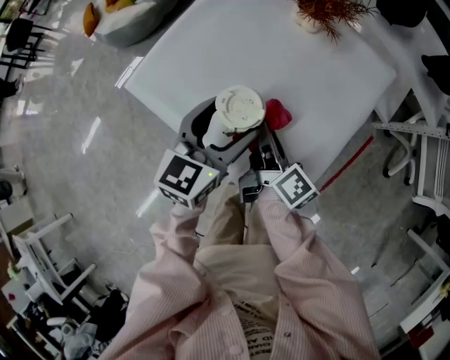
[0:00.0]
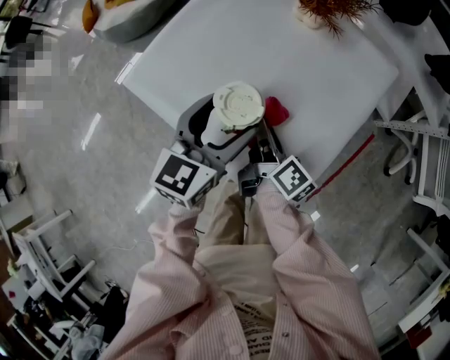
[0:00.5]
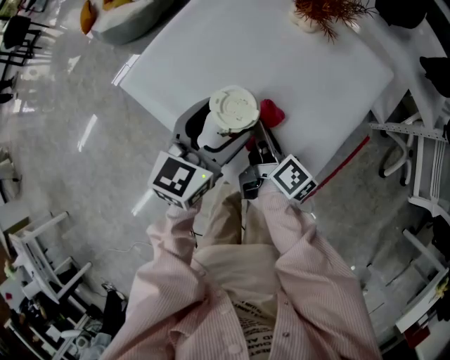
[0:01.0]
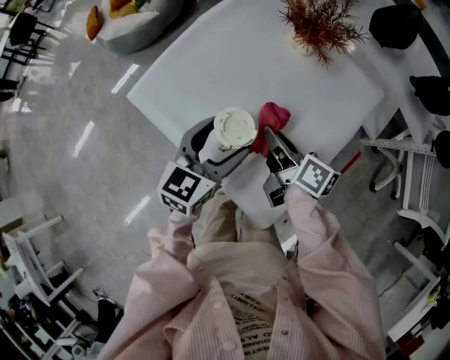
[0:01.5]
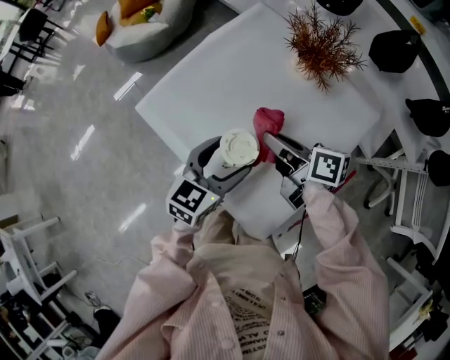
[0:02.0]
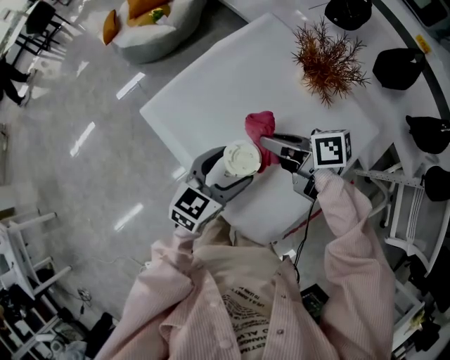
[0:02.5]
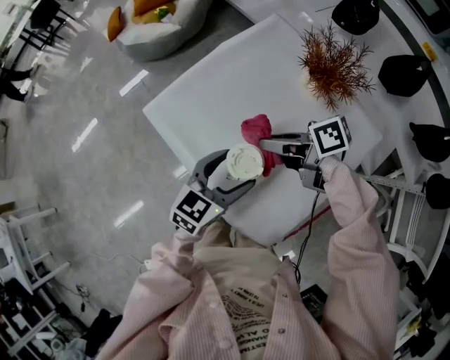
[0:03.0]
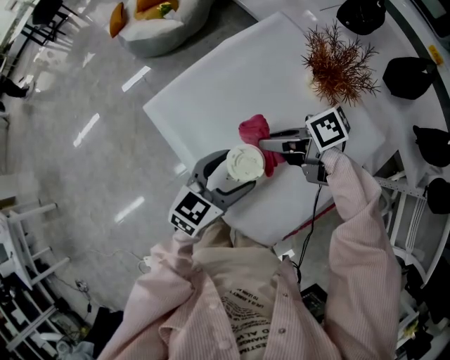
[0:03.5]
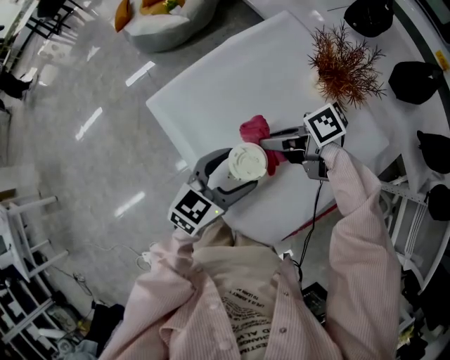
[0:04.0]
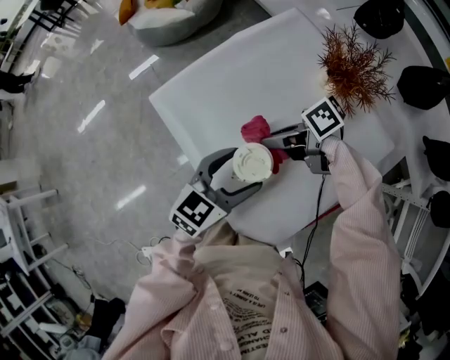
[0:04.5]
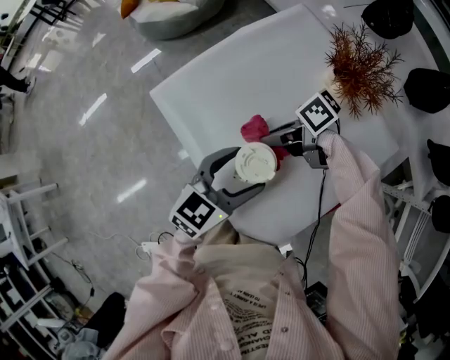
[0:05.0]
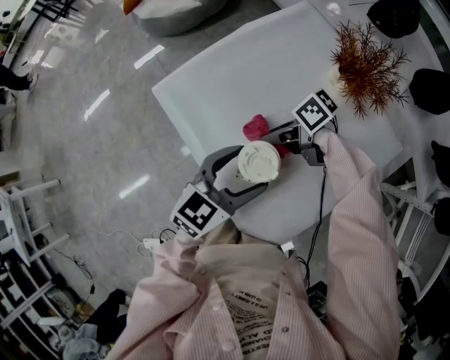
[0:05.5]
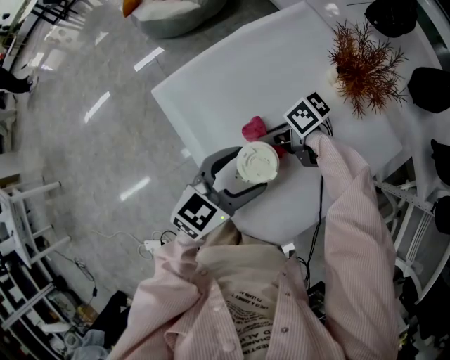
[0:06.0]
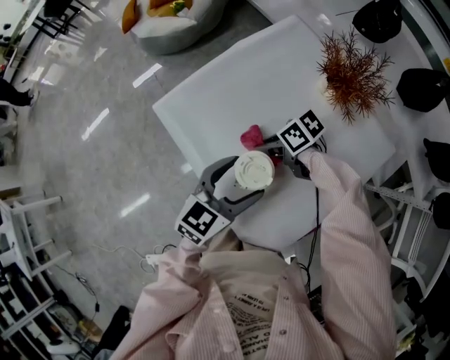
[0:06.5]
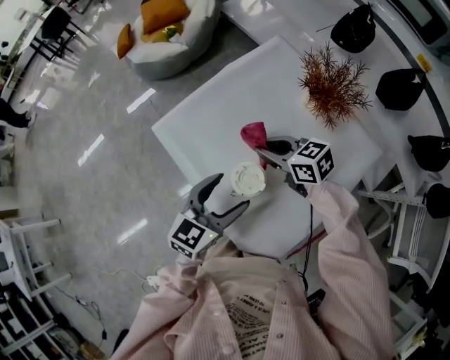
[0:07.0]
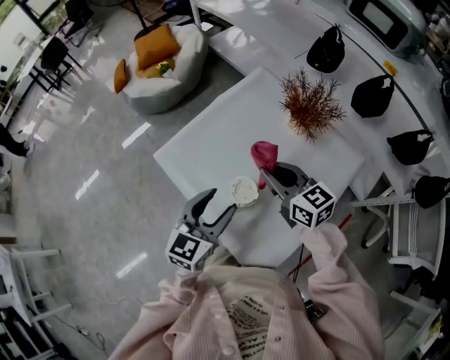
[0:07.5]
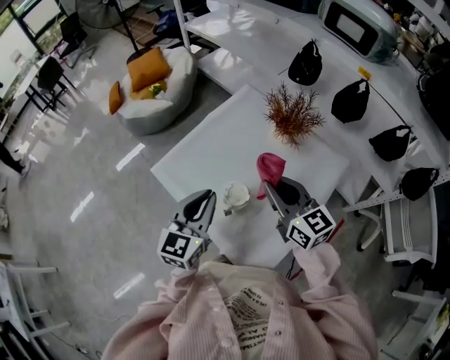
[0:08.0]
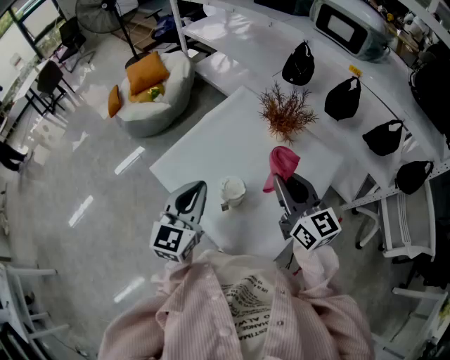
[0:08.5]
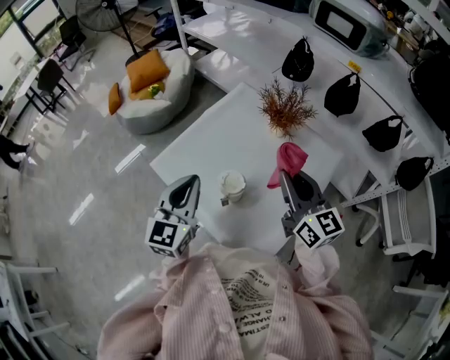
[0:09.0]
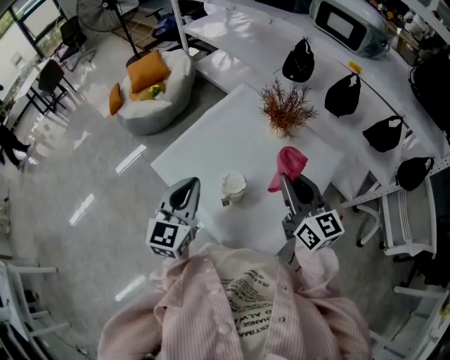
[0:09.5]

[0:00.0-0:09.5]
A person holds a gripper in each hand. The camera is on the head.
0:00.0 to 0:02.0: The right gripper goes roughly 10 cm upward and forward, and rotates about 40 degrees.
0:02.0 to 0:04.0: The right gripper ends up roughly 5 cm from where it was, and swivels roughly 50 degrees.
0:04.0 to 0:05.5: The right gripper shifts roughly 10 cm downward.
0:05.5 to 0:07.5: The right gripper heads upward, covering approximately 15 cm, and changes its angle by roughly 70 degrees. The left gripper is displaced upward by about 5 cm.
0:07.5 to 0:09.5: The right gripper heads upward, to the right and backward, covering roughly 15 cm, and changes its angle by some 30 degrees. Meanwhile the left gripper is displaced upward by approximately 10 cm, and closes.

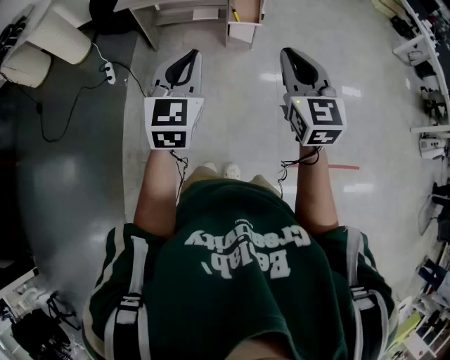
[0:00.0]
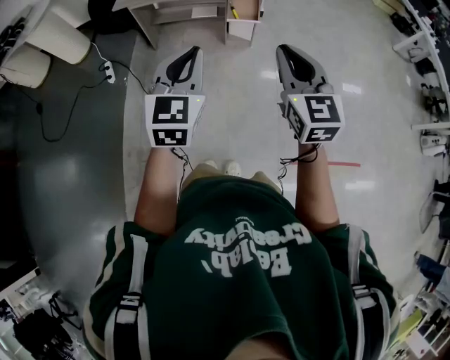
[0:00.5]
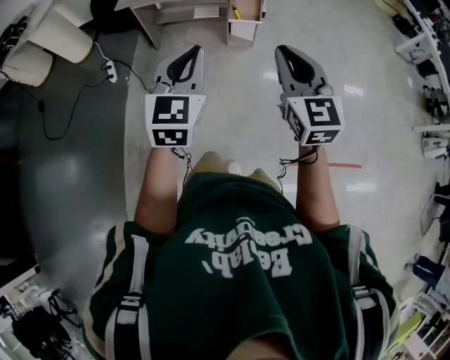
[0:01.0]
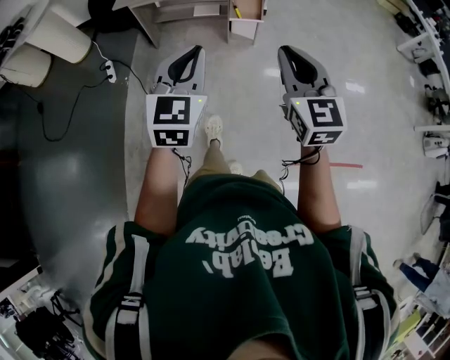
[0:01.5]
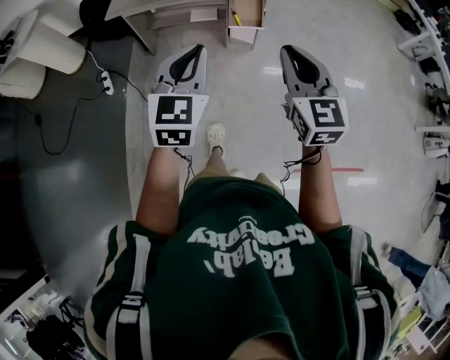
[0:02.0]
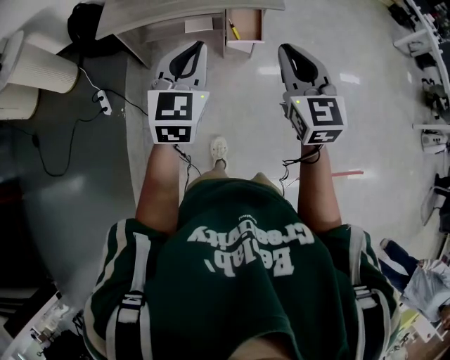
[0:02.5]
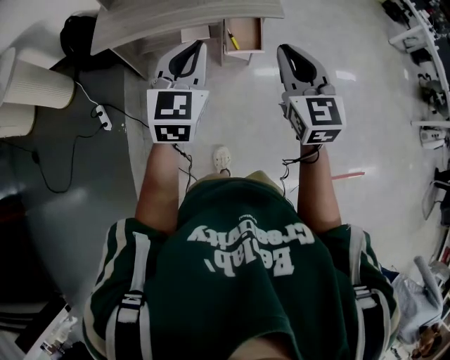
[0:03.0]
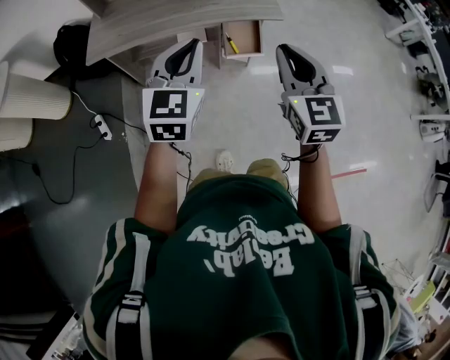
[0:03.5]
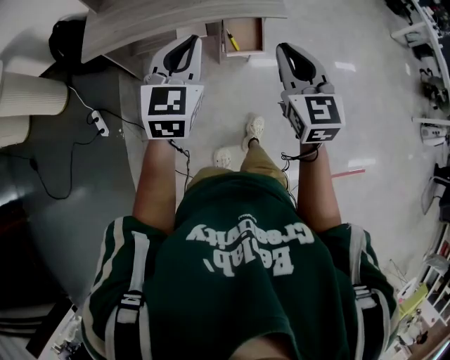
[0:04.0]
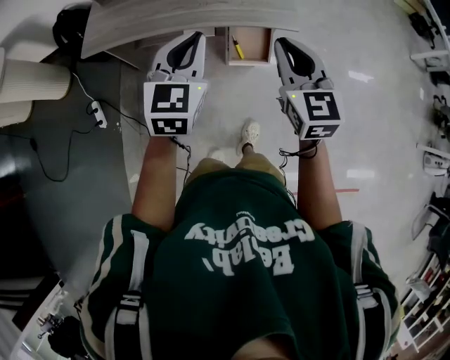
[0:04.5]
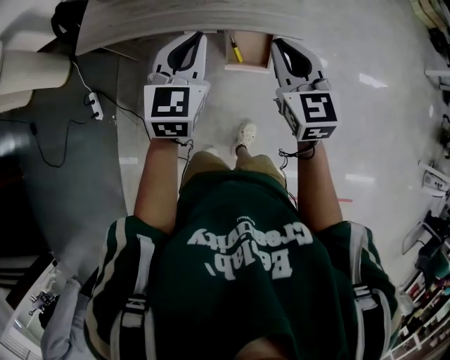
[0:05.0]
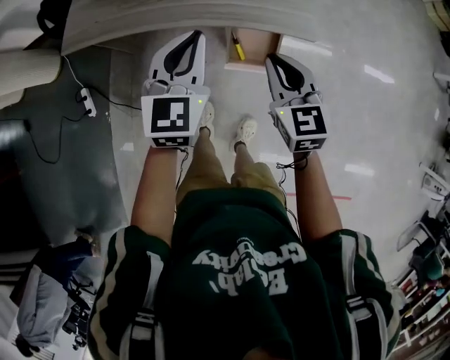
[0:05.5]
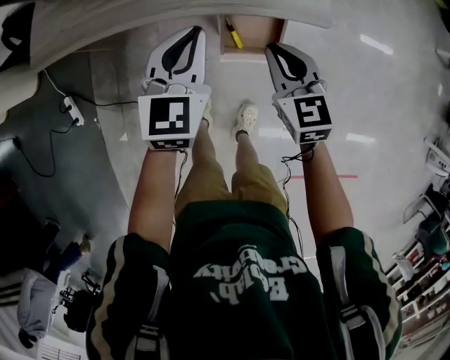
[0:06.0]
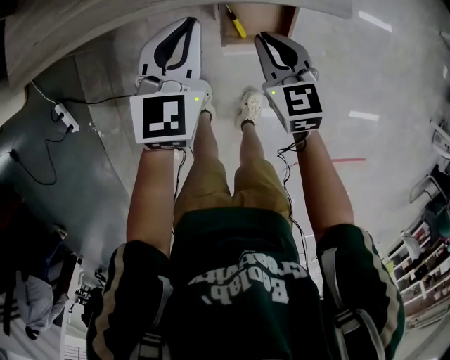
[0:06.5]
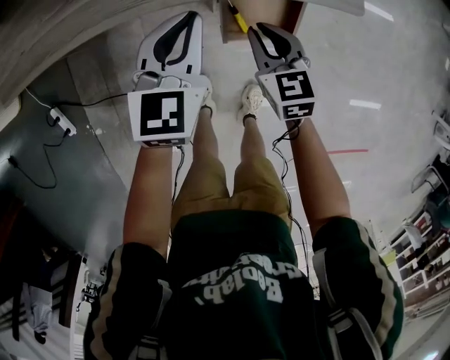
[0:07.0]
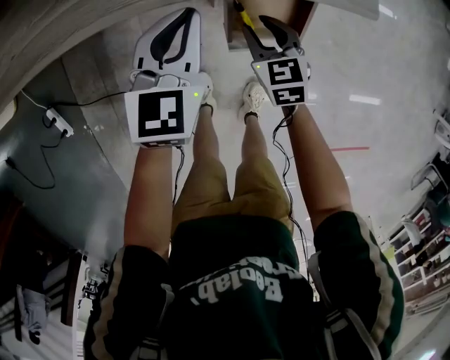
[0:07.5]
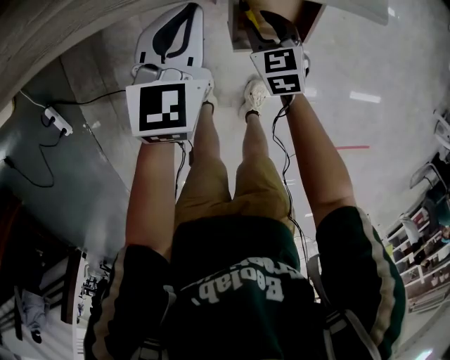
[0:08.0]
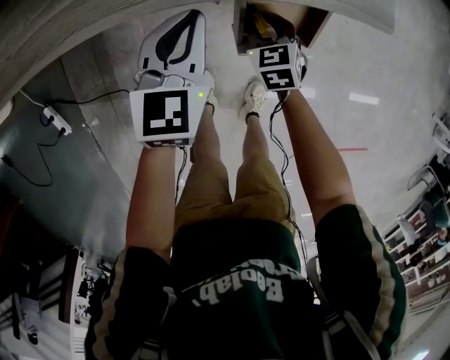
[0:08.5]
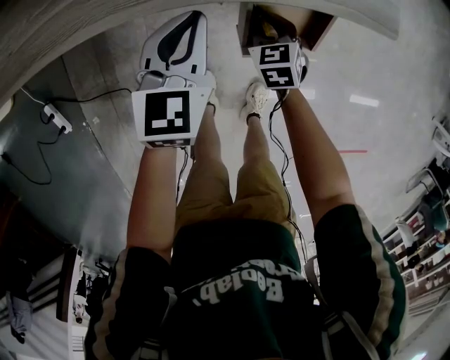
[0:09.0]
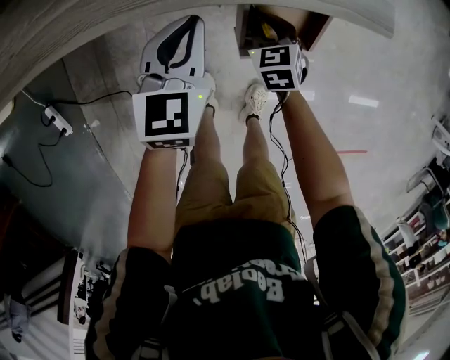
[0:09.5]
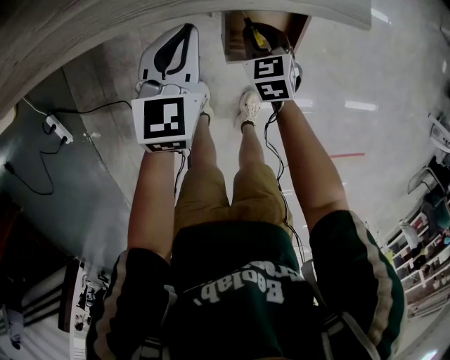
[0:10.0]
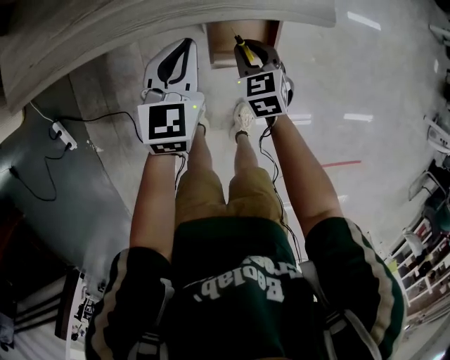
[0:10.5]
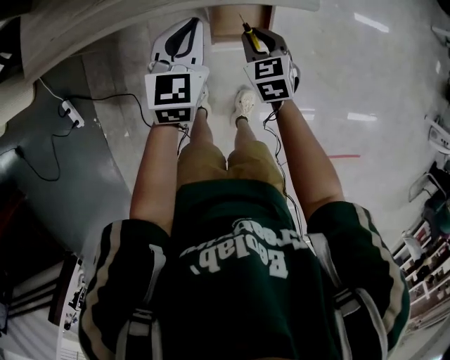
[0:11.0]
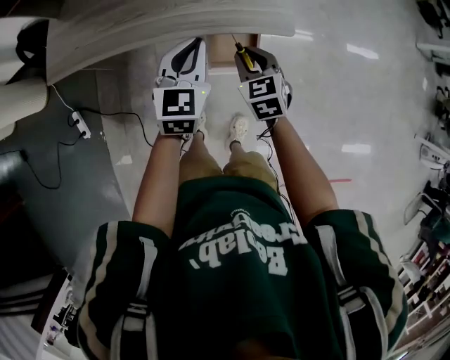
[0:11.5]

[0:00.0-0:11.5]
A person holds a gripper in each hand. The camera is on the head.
0:00.0 to 0:02.0: The grippers both shift forward by some 15 cm.
0:02.0 to 0:04.0: Both grippers travel together forward, about 35 cm.
0:04.0 to 0:06.0: The two grippers go approximately 40 cm forward and downward. The right gripper changes its angle by roughly 20 degrees.
0:06.0 to 0:07.5: The grippers both shift downward by roughly 20 cm. The right gripper opens up.
0:07.5 to 0:09.5: The right gripper heads downward, covering about 5 cm, while the left gripper moves some 5 cm.
0:09.5 to 0:11.5: The left gripper travels upward and to the right by some 30 cm, while the right gripper goes about 35 cm upward.

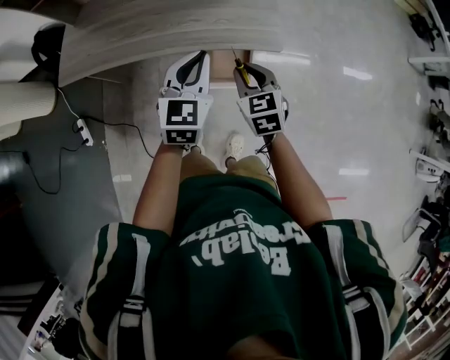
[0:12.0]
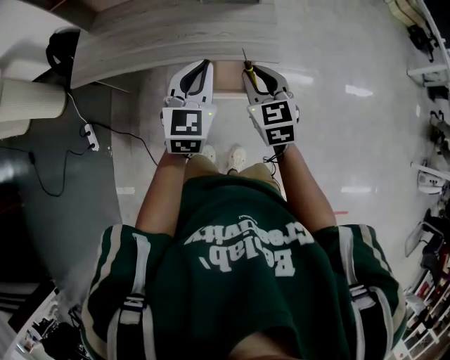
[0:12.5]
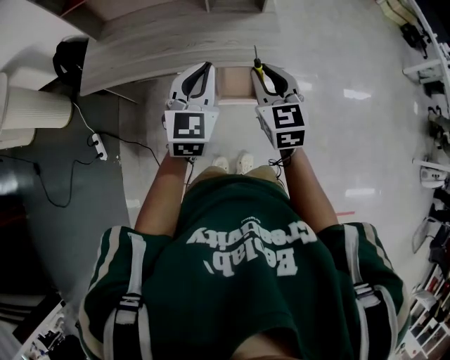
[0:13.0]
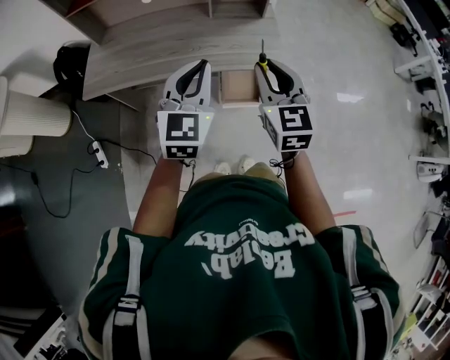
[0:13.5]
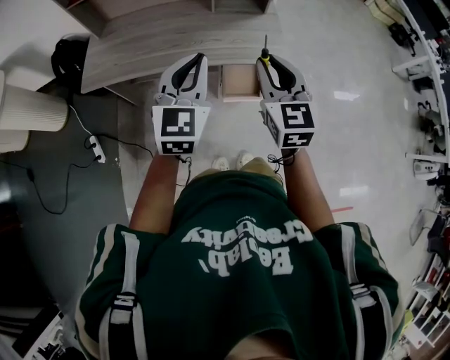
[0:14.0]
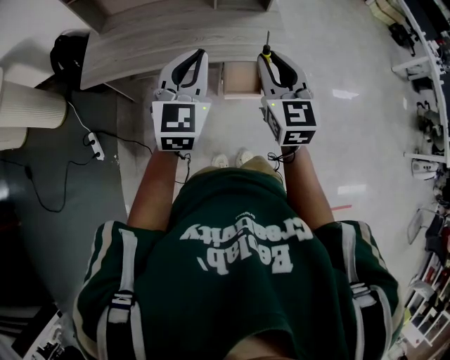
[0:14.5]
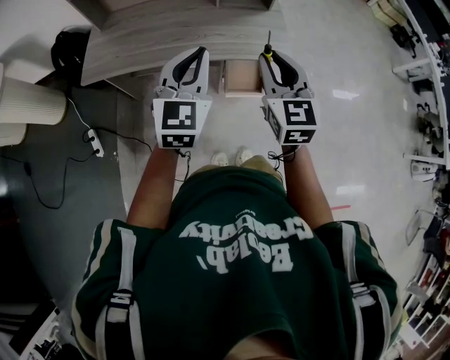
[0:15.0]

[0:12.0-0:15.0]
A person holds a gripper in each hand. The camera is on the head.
0:12.0 to 0:13.5: The left gripper is displaced upward, to the left and backward by about 20 cm; the right gripper is displaced upward by approximately 20 cm, and swivels roughly 20 degrees.
0:13.5 to 0:15.0: There are only small adjustments of the grippers.

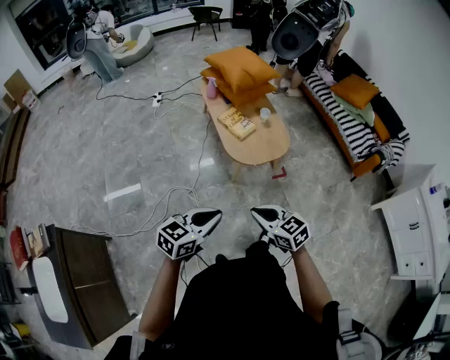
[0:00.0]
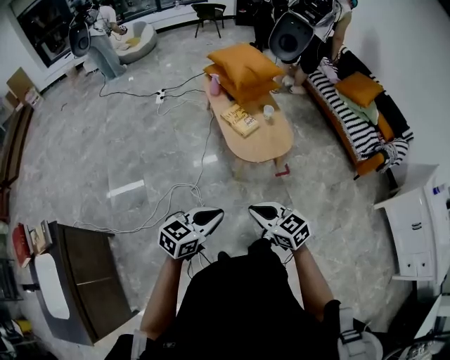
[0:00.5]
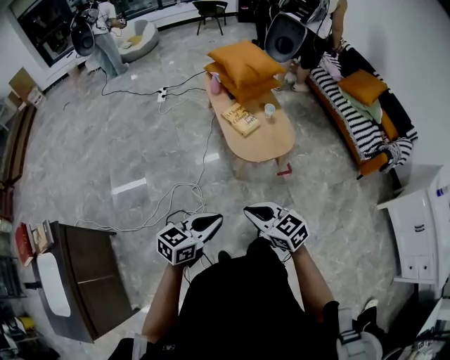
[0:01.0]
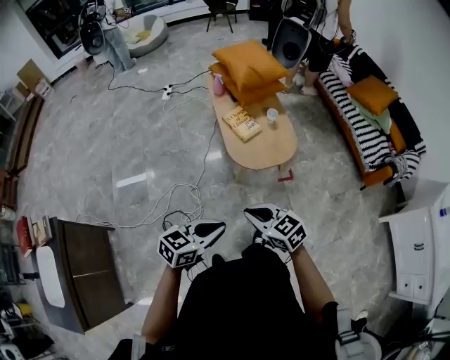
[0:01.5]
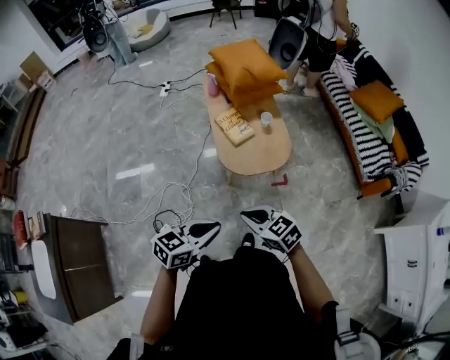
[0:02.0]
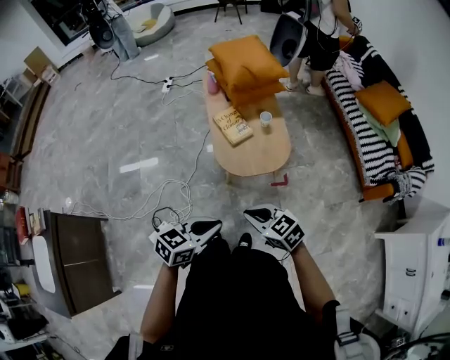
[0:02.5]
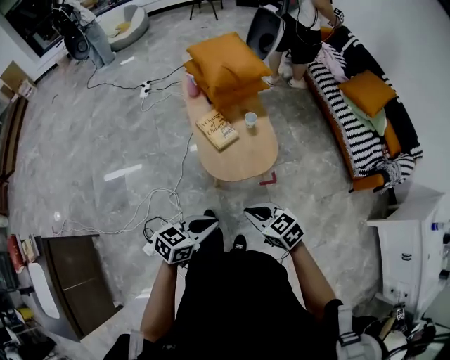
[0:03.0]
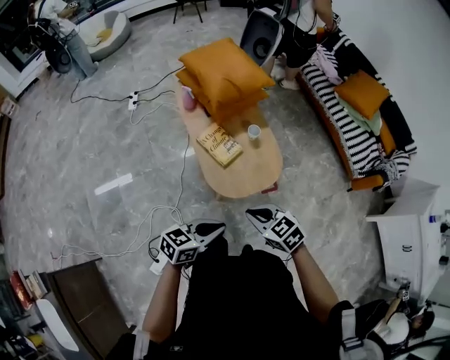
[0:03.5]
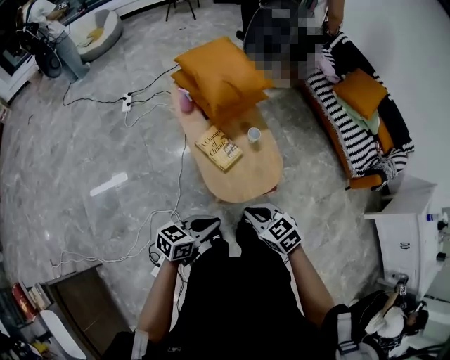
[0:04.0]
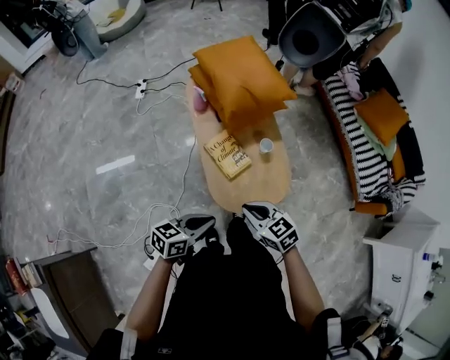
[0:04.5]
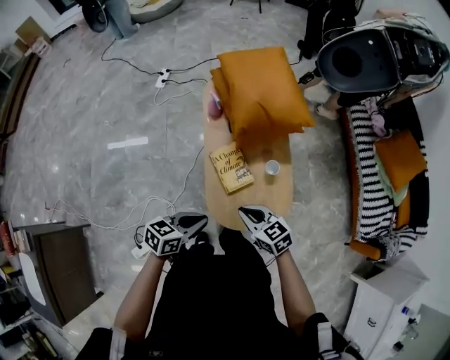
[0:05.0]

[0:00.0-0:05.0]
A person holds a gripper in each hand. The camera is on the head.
0:00.0 to 0:02.5: Both grippers move to the right and forward, roughly 20 cm.
0:02.5 to 0:05.0: Both grippers travel together forward, some 35 cm.
